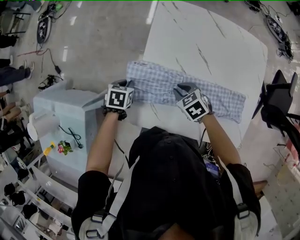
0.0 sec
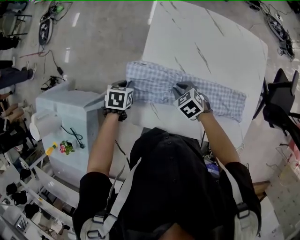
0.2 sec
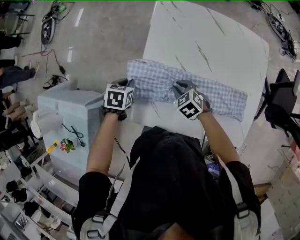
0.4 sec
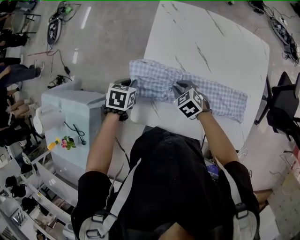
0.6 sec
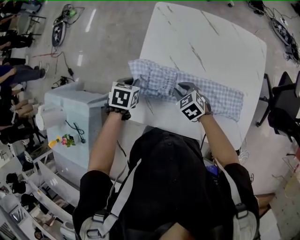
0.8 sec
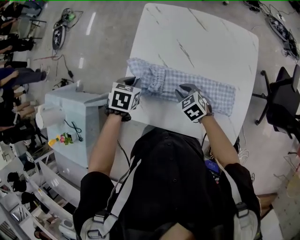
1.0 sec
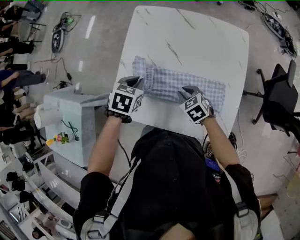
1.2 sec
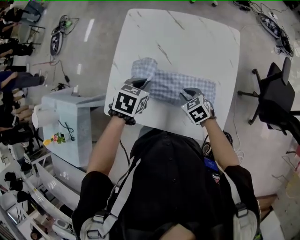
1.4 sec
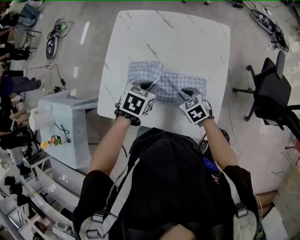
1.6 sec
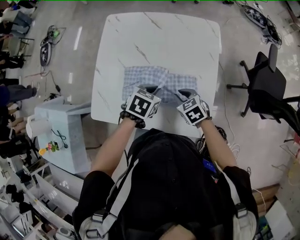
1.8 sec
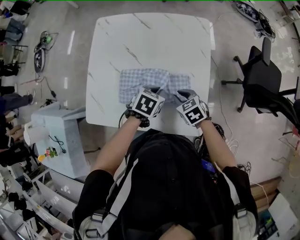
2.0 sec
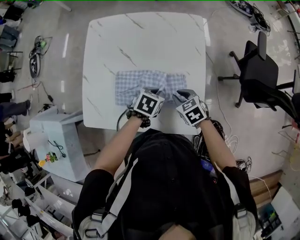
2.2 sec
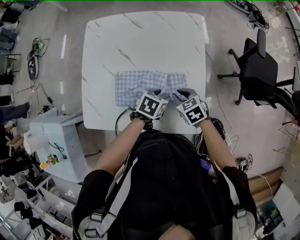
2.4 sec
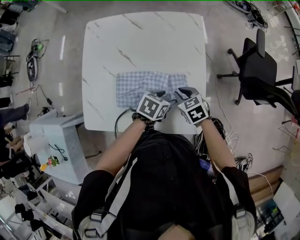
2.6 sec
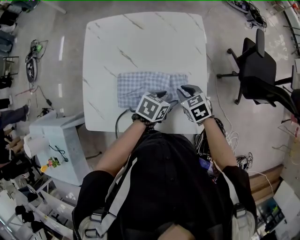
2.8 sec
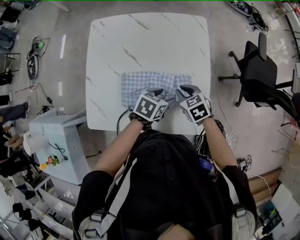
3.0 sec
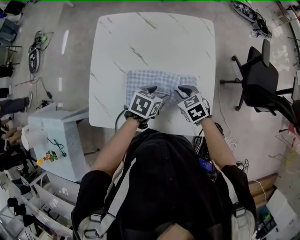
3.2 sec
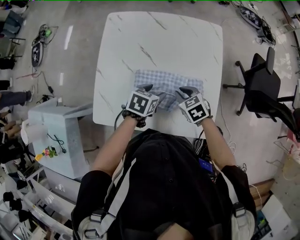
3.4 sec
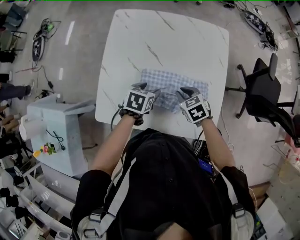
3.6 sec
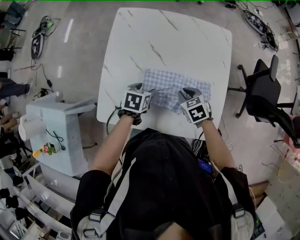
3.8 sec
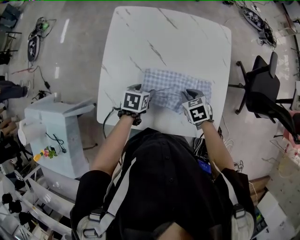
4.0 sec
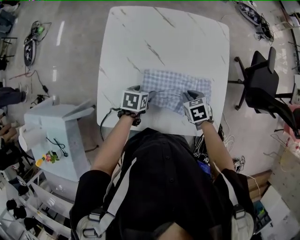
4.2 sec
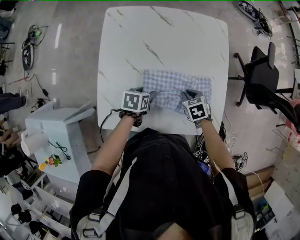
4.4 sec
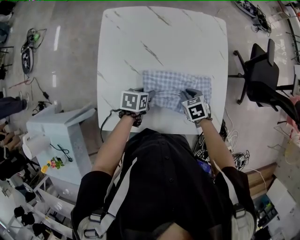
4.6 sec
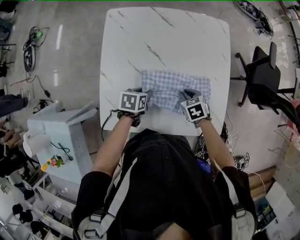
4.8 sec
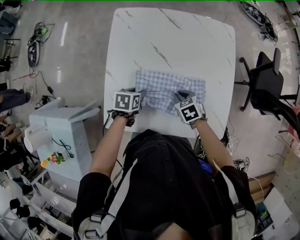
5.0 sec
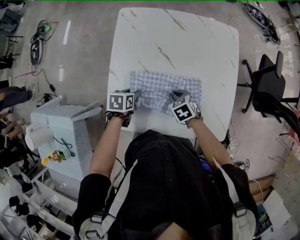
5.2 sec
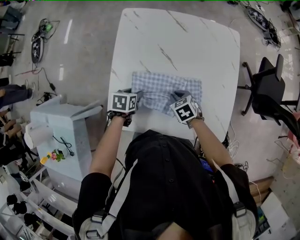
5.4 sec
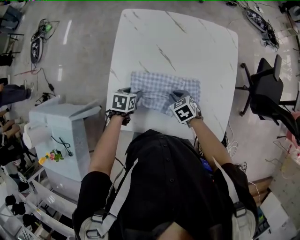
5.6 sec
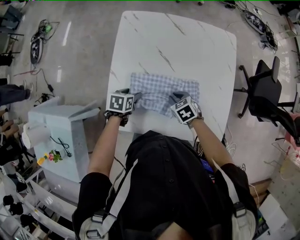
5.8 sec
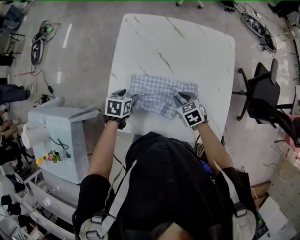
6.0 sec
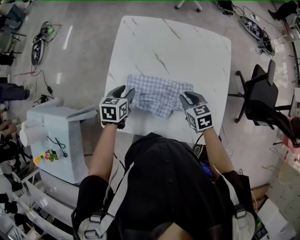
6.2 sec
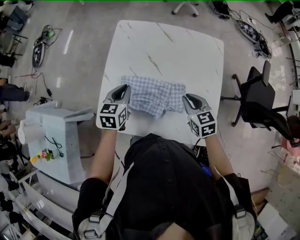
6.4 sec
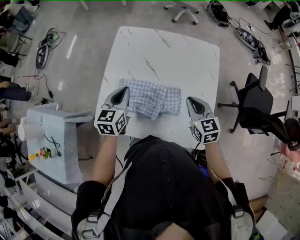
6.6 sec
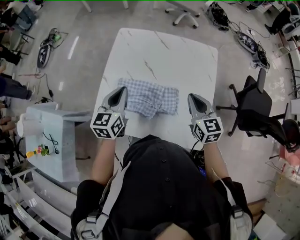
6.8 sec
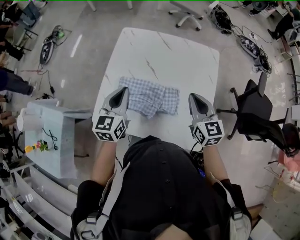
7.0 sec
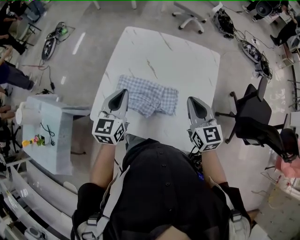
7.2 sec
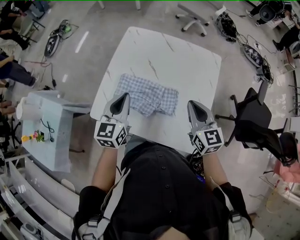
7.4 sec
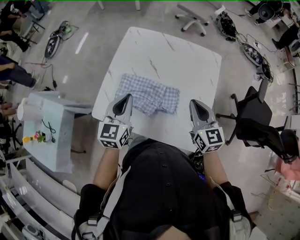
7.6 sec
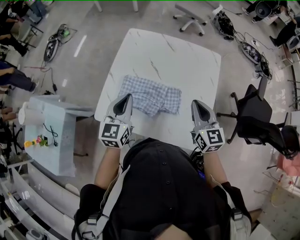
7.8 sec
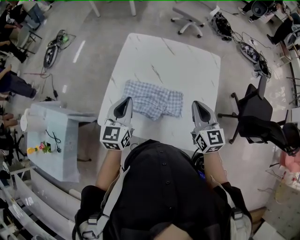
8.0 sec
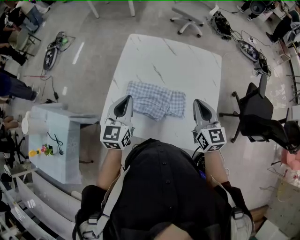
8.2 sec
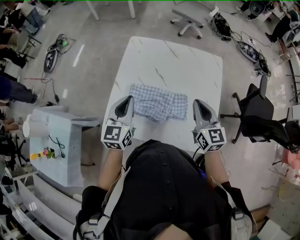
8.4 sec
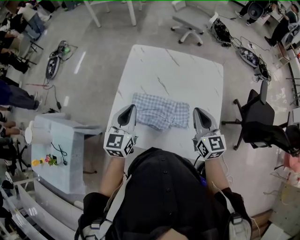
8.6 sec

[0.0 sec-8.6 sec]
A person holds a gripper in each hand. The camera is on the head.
0.0 sec to 1.4 sec: The right gripper travels to the right and backward by approximately 25 cm. Meanwhile the left gripper goes roughly 35 cm to the right and upward.
1.4 sec to 2.8 sec: The right gripper ends up roughly 15 cm from where it was. The left gripper moves approximately 25 cm, swivels some 30 degrees, and opens.
2.8 sec to 4.4 sec: The right gripper shifts roughly 10 cm to the left and downward, while the left gripper is displaced to the left by about 25 cm, and changes its angle by approximately 20 degrees.
4.4 sec to 5.8 sec: The two grippers go approximately 10 cm to the left.
5.8 sec to 7.2 sec: The left gripper shifts some 25 cm upward, angles its fingers upward, by approximately 40 degrees, and closes up, while the right gripper moves upward and to the right, roughly 30 cm, and tilts its fingers some 50 degrees upward.
7.2 sec to 8.6 sec: The left gripper heads to the left, covering roughly 5 cm.

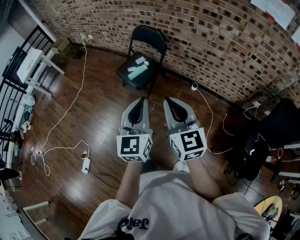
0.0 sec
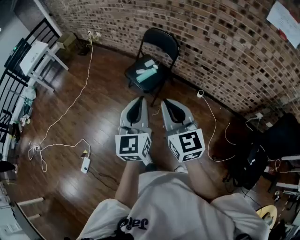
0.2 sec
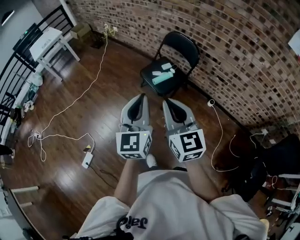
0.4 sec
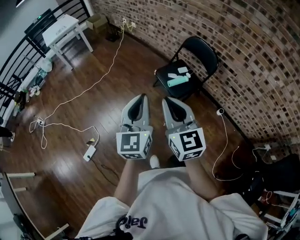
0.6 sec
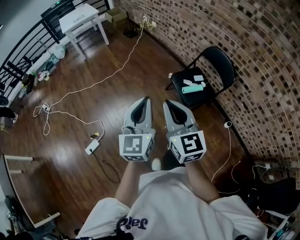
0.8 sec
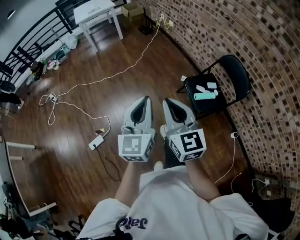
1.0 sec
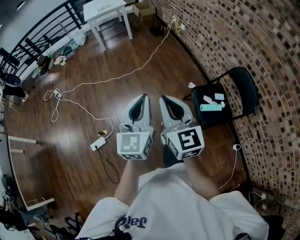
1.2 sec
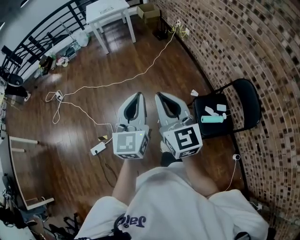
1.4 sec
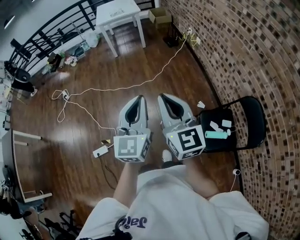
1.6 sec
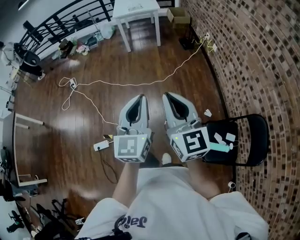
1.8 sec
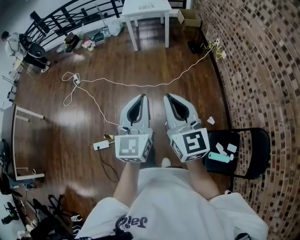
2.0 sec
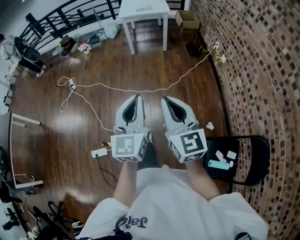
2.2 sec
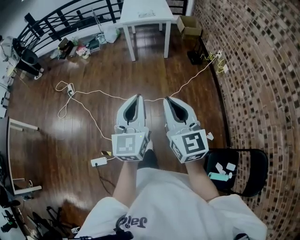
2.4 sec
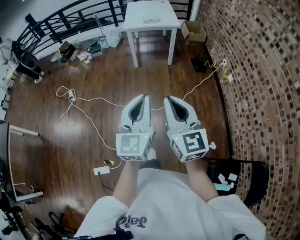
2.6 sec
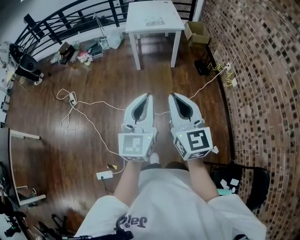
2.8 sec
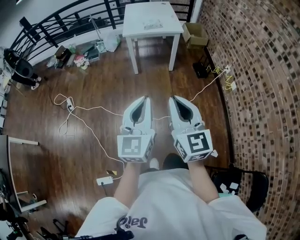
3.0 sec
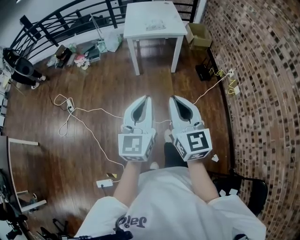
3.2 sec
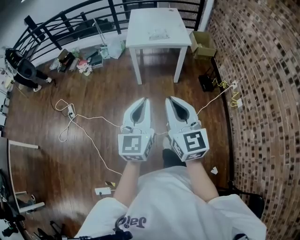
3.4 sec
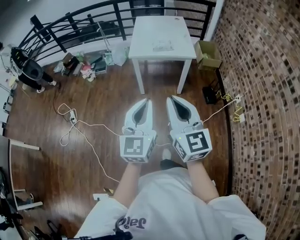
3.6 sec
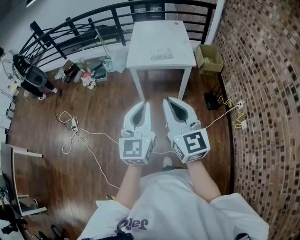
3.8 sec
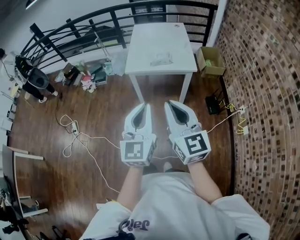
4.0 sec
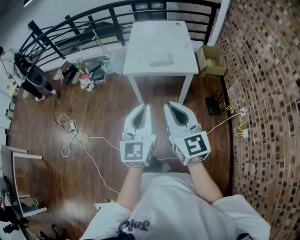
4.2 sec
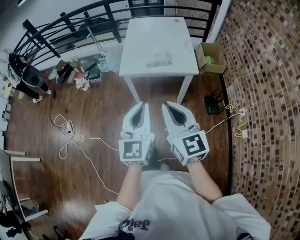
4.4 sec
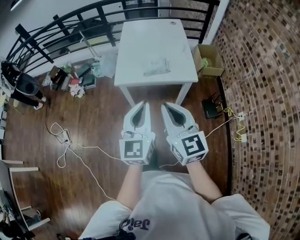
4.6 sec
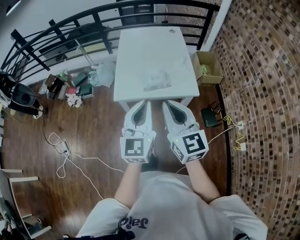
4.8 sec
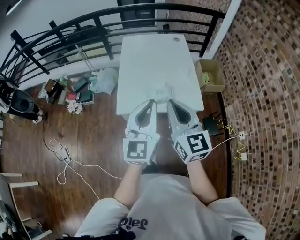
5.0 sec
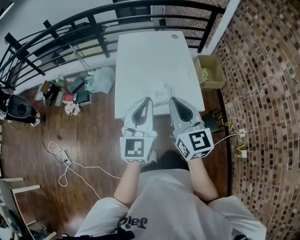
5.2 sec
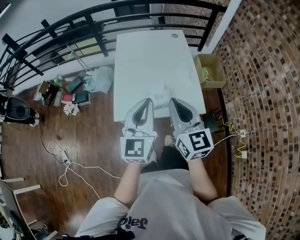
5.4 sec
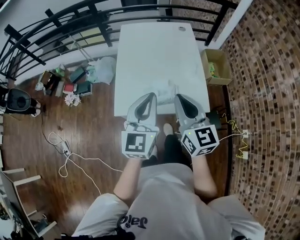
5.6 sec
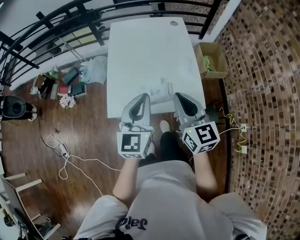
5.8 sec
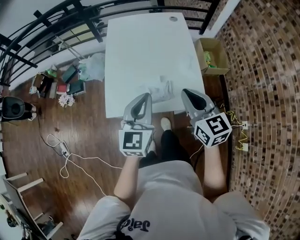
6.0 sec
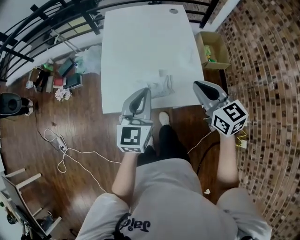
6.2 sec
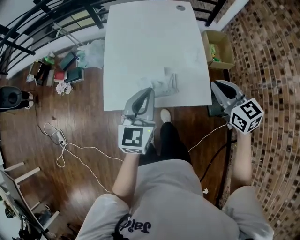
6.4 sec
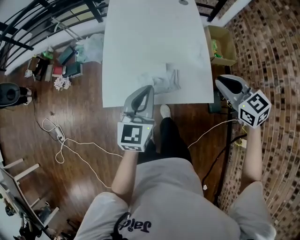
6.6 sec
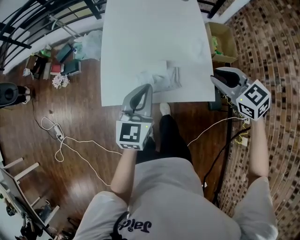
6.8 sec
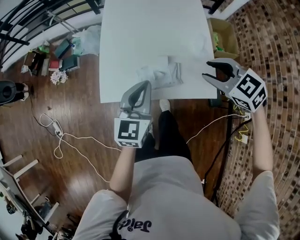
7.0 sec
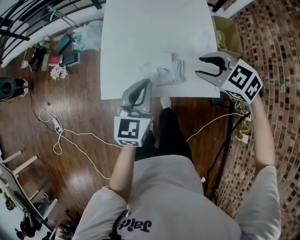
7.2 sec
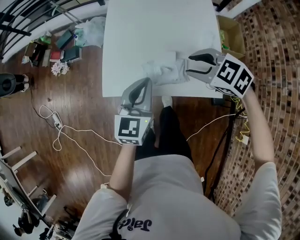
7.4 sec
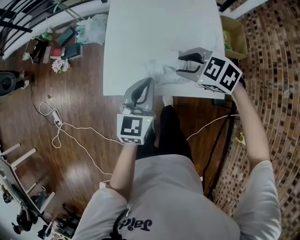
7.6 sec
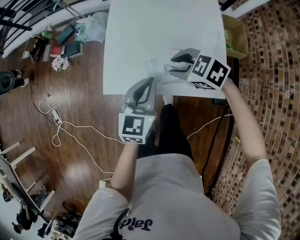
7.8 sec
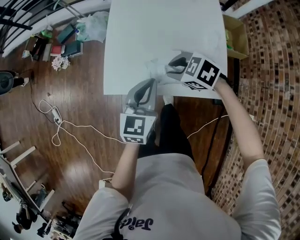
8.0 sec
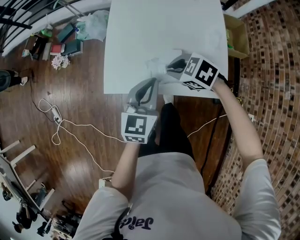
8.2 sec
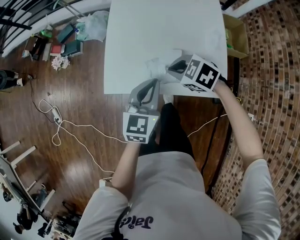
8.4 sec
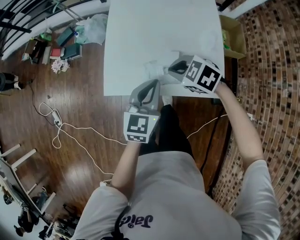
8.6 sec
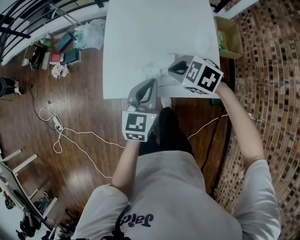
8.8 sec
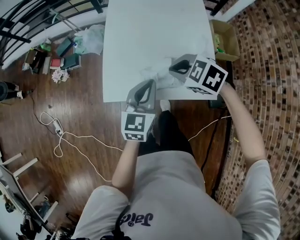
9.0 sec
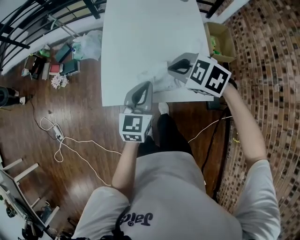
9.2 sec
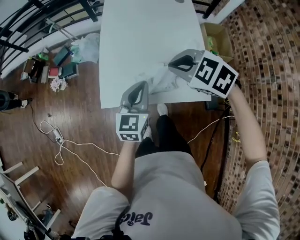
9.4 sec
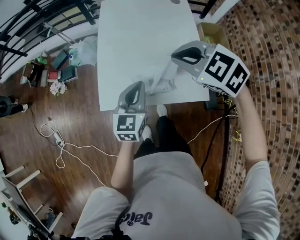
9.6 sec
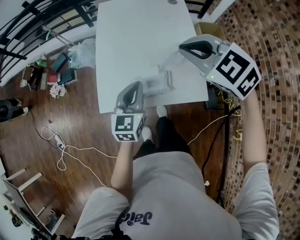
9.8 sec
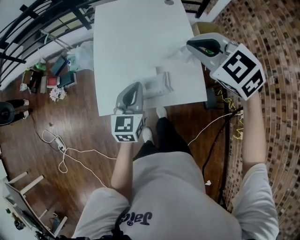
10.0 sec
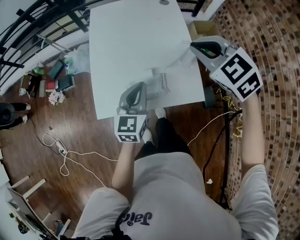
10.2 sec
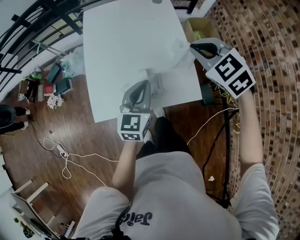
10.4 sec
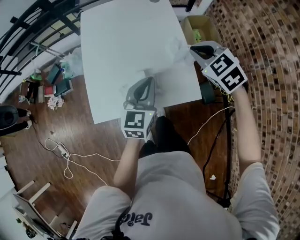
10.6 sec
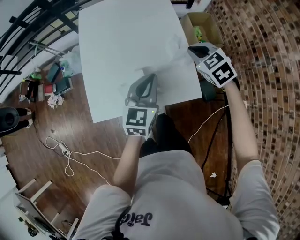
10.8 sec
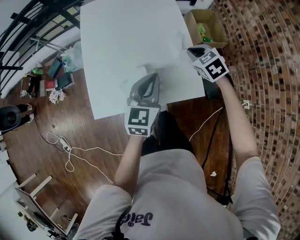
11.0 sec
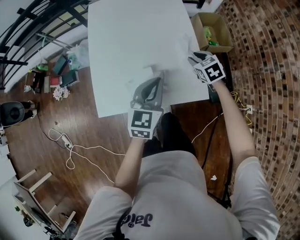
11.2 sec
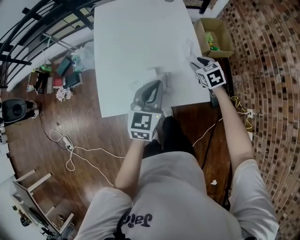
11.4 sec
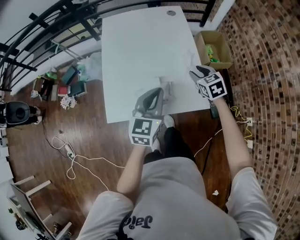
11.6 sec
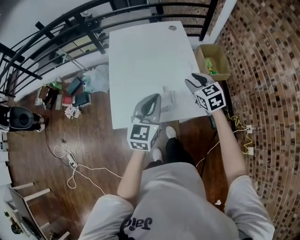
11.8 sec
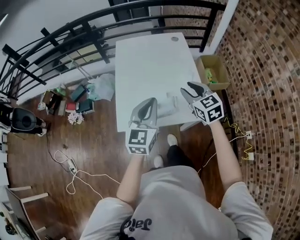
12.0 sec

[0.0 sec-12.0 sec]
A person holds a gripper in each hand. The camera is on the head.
0.0 sec to 1.6 sec: The two grippers travel together, some 70 cm. The right gripper turns by some 50 degrees. The left gripper turns by approximately 40 degrees.
1.6 sec to 3.0 sec: Both grippers are carried forward, some 60 cm.
3.0 sec to 4.4 sec: The two grippers travel together, forward, about 50 cm.
4.4 sec to 6.0 sec: Both grippers are carried forward, about 40 cm.
6.0 sec to 7.6 sec: The two grippers go approximately 15 cm downward. The right gripper tips its fingers downward by roughly 40 degrees, and opens up.
7.6 sec to 9.0 sec: The right gripper travels downward and back again, about 5 cm each way, and closes up.
9.0 sec to 10.4 sec: The right gripper changes place by approximately 20 cm, and changes its angle by about 30 degrees, while the left gripper shifts by some 10 cm.
10.4 sec to 12.0 sec: The right gripper goes about 10 cm backward and to the left, moves roughly 25 cm downward and comes back, changes its angle by approximately 30 degrees, and opens up. Meanwhile the left gripper heads upward, backward and to the left, covering approximately 15 cm.

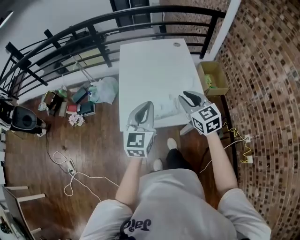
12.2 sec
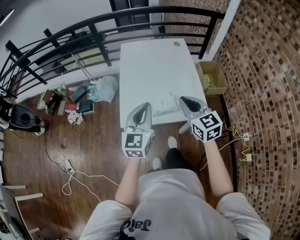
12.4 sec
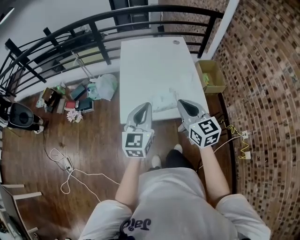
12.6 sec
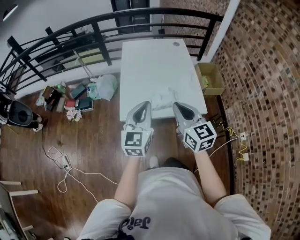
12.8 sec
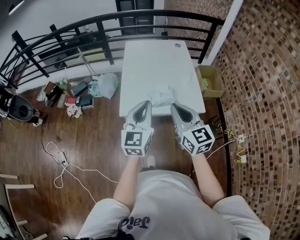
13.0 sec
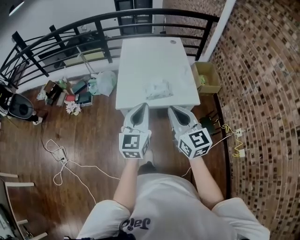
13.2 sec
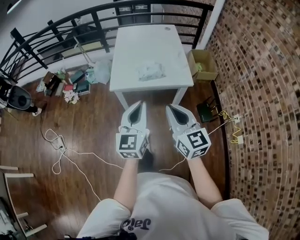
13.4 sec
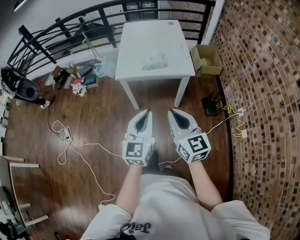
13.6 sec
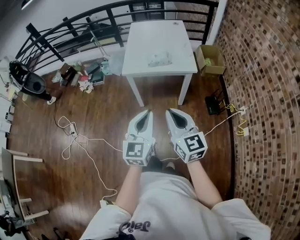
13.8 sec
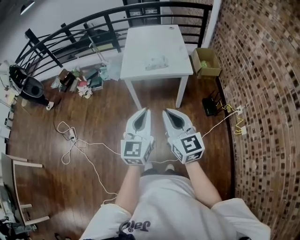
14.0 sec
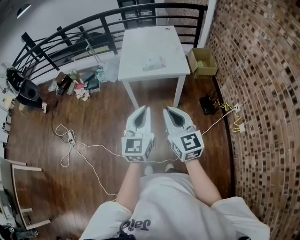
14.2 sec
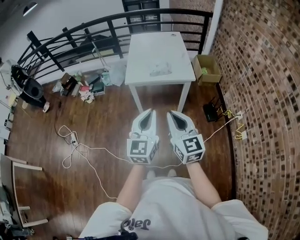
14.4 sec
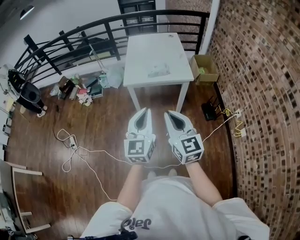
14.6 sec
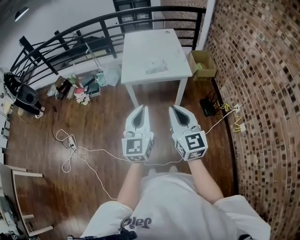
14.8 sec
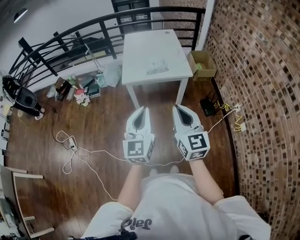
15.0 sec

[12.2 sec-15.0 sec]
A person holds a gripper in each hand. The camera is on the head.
12.2 sec to 13.6 sec: The two grippers go some 40 cm backward. The right gripper closes.
13.6 sec to 15.0 sec: The left gripper moves upward, to the left and backward, roughly 10 cm. The right gripper travels upward and backward by approximately 10 cm.
